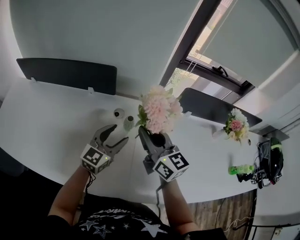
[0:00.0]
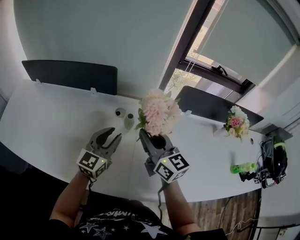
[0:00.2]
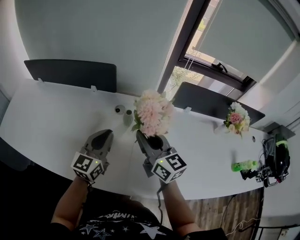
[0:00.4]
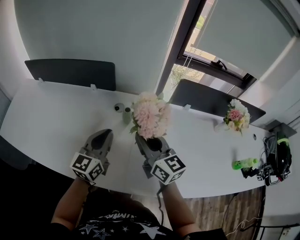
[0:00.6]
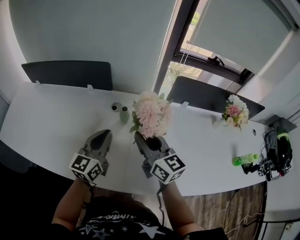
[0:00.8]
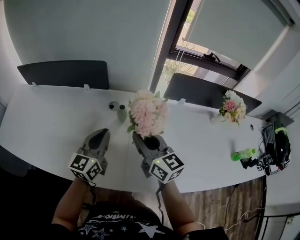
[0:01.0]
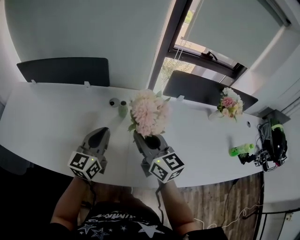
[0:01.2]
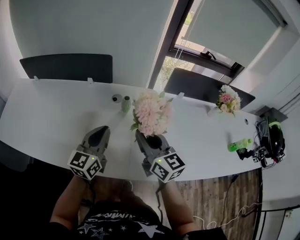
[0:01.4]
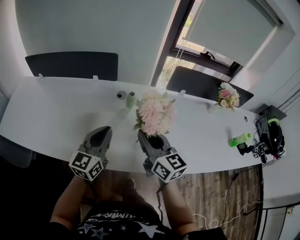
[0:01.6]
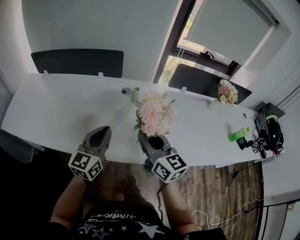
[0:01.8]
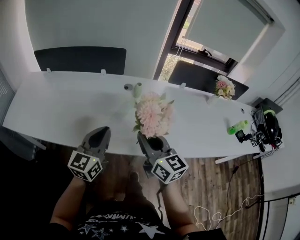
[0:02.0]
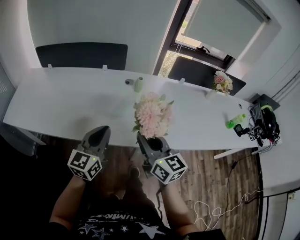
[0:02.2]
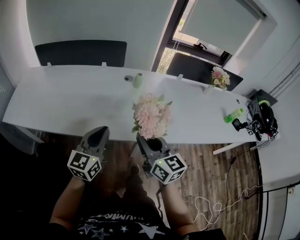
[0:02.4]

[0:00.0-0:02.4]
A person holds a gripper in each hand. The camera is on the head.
0:00.0 to 0:01.2: The right gripper travels backward by some 10 cm, while the left gripper goes approximately 10 cm backward and upward, and closes up.
0:01.2 to 0:02.4: The two grippers go roughly 25 cm backward and to the left.

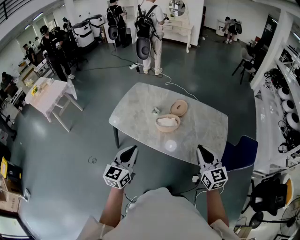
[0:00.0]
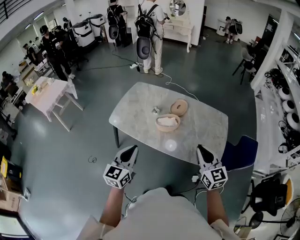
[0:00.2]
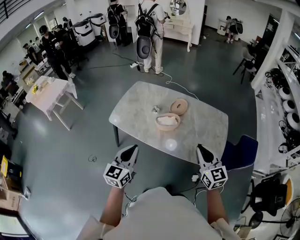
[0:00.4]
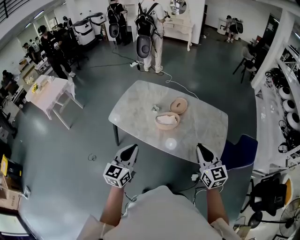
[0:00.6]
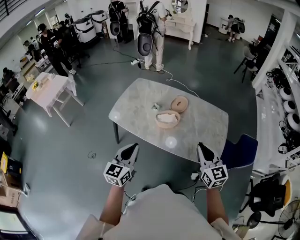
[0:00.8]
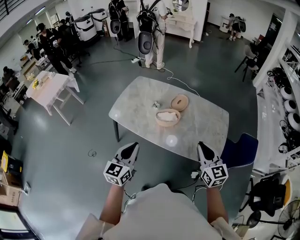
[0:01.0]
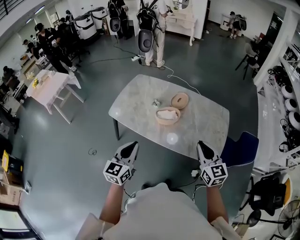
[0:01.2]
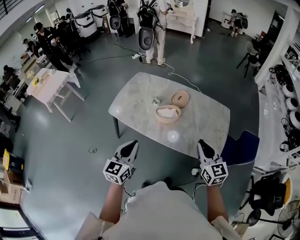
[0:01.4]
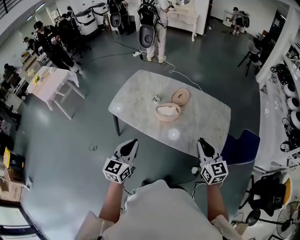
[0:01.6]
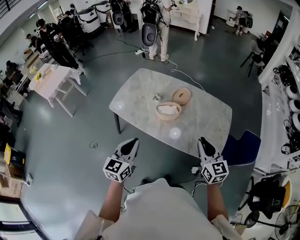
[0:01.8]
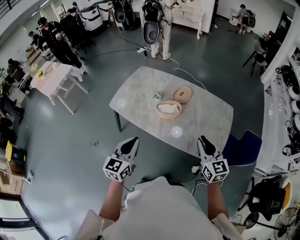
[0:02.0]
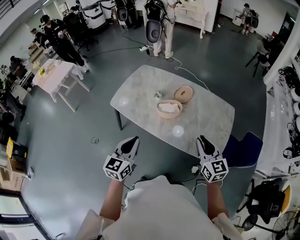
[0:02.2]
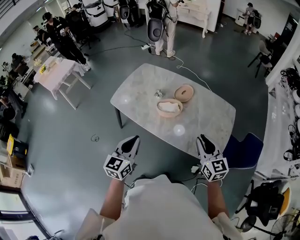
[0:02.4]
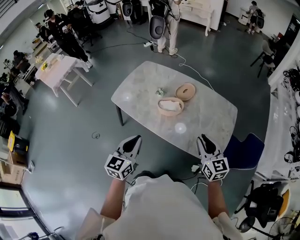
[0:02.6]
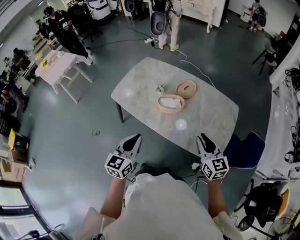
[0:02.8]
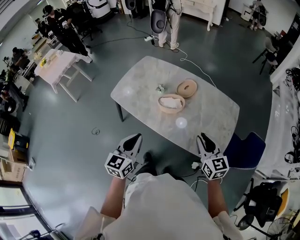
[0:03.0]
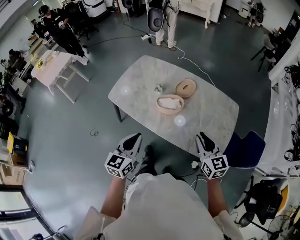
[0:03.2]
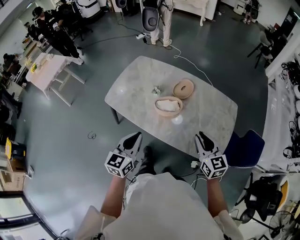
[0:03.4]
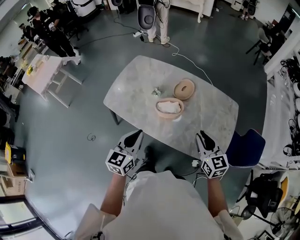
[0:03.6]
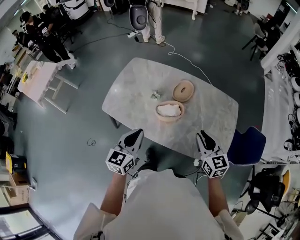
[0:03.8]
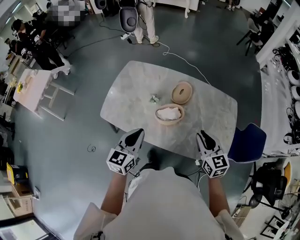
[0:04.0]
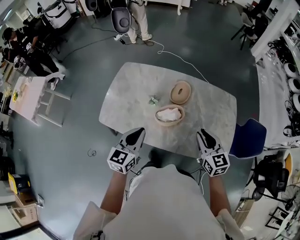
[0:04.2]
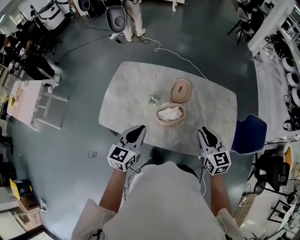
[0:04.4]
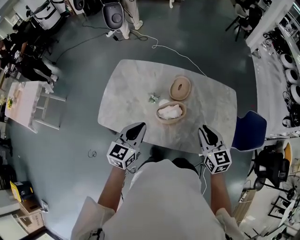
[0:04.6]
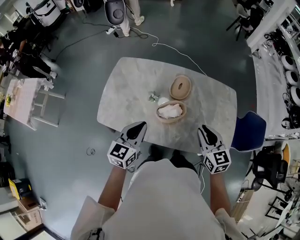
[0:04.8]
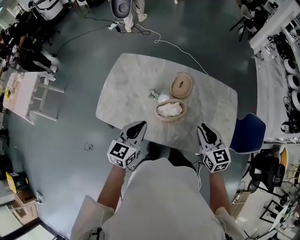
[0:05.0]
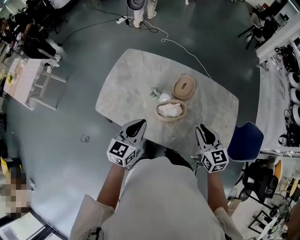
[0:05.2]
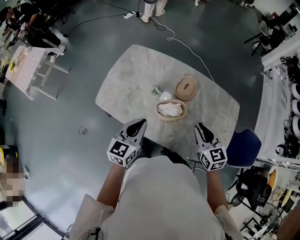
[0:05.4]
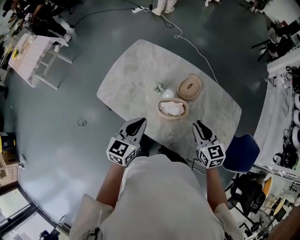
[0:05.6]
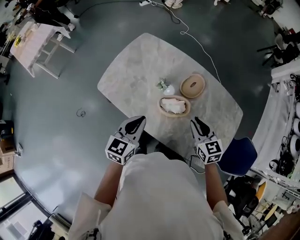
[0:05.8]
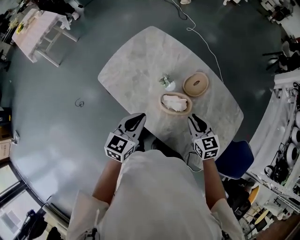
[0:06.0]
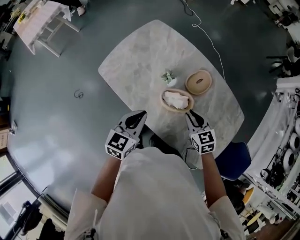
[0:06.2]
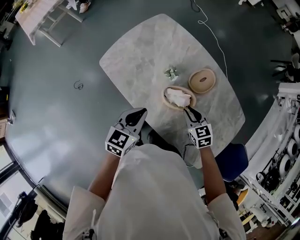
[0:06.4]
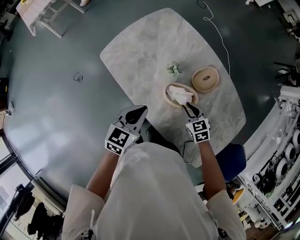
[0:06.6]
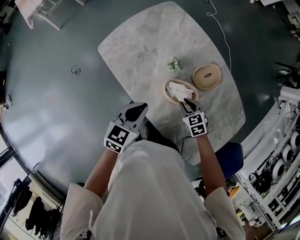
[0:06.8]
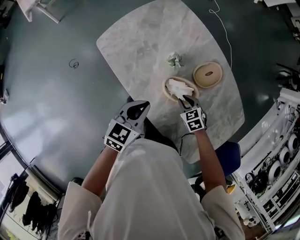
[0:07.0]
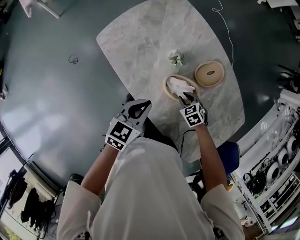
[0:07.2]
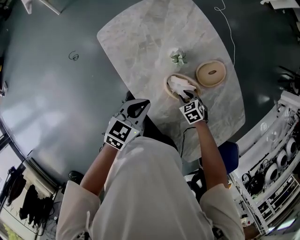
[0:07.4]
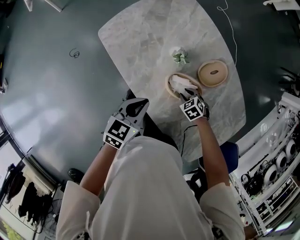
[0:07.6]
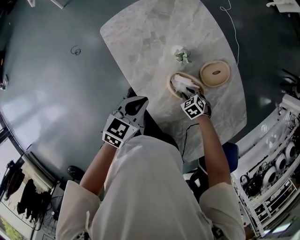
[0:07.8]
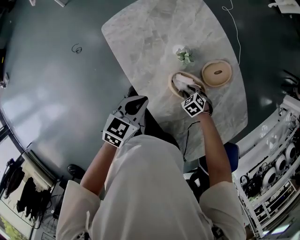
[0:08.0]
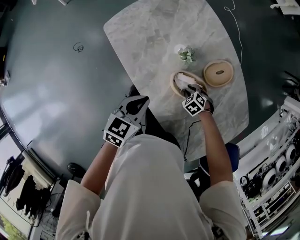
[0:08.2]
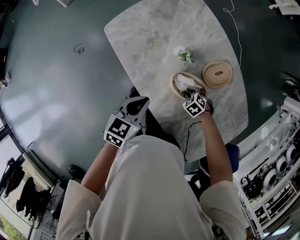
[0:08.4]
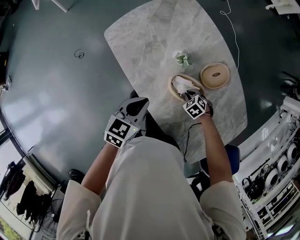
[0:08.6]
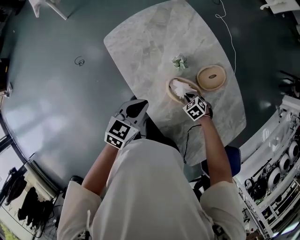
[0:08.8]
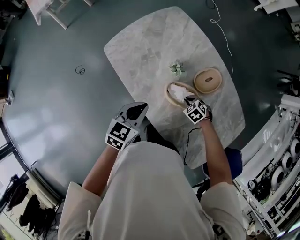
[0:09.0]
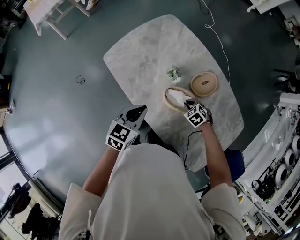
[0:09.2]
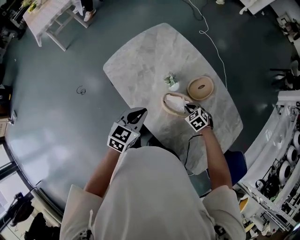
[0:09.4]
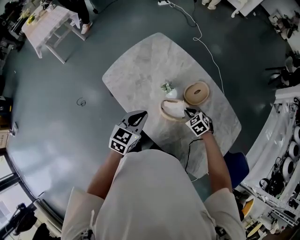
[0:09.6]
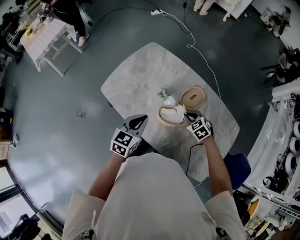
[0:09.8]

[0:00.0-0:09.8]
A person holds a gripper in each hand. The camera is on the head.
0:00.0 to 0:01.4: The grippers move only a little.
0:01.4 to 0:02.8: The left gripper is displaced to the right by approximately 5 cm; the right gripper moves about 10 cm.
0:02.8 to 0:04.2: The left gripper heads forward, covering roughly 25 cm. Meanwhile the right gripper is displaced forward and to the left by roughly 20 cm.
0:04.2 to 0:05.6: The right gripper is displaced forward by roughly 10 cm. Meanwhile the left gripper changes place by about 5 cm.
0:05.6 to 0:07.0: The left gripper goes approximately 10 cm downward. The right gripper travels downward by approximately 30 cm, and angles its fingers downward, by roughly 30 degrees.
0:07.0 to 0:08.4: The right gripper heads downward, covering some 10 cm, and rotates roughly 30 degrees.
0:08.4 to 0:09.8: The left gripper travels upward by approximately 10 cm. The right gripper is displaced upward by about 20 cm, and rotates some 30 degrees.

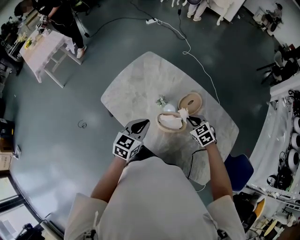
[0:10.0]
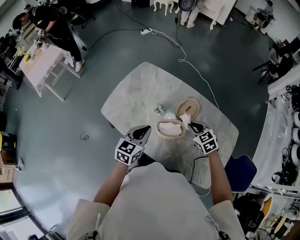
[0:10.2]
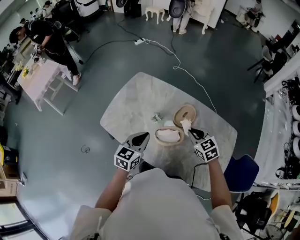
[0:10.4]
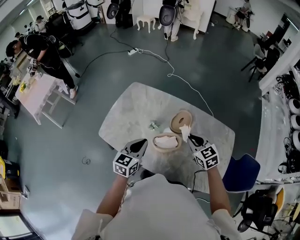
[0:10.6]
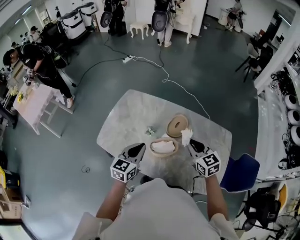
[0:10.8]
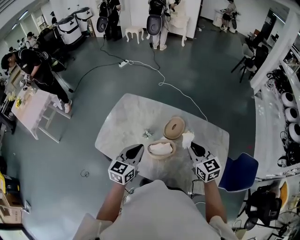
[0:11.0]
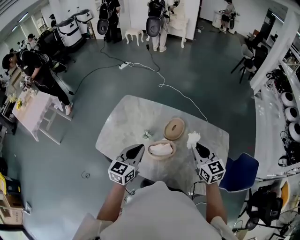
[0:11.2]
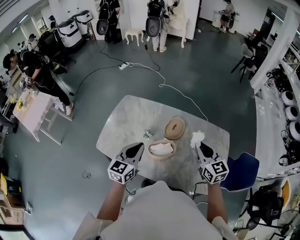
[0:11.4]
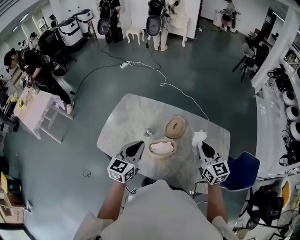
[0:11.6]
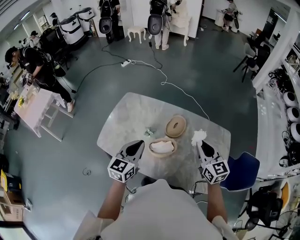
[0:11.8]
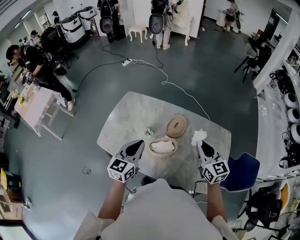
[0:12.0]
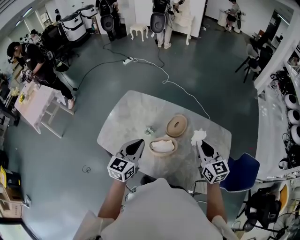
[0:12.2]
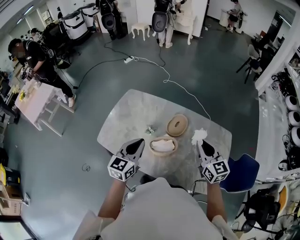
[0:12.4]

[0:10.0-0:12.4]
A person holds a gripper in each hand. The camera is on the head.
0:10.0 to 0:11.2: The right gripper shifts some 20 cm upward and to the right, and points its fingers roughly 30 degrees further upward, while the left gripper travels upward by roughly 10 cm.
0:11.2 to 0:12.4: There are only small adjustments of the grippers.

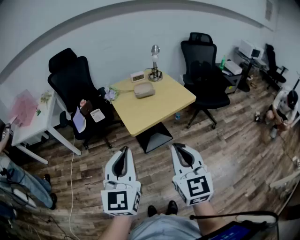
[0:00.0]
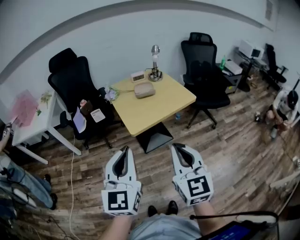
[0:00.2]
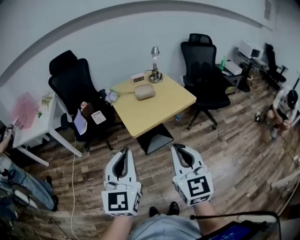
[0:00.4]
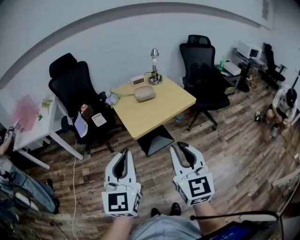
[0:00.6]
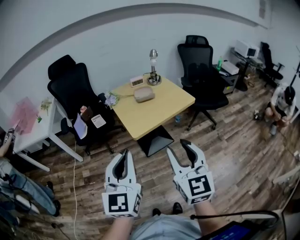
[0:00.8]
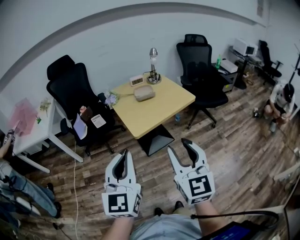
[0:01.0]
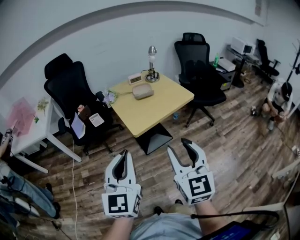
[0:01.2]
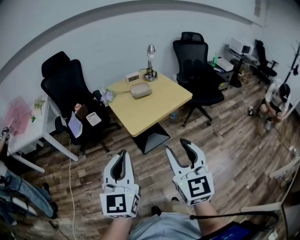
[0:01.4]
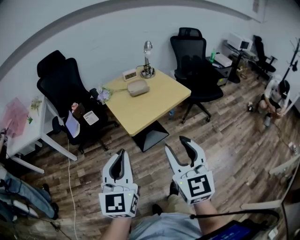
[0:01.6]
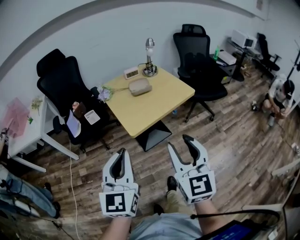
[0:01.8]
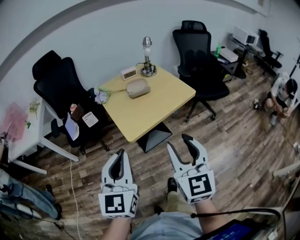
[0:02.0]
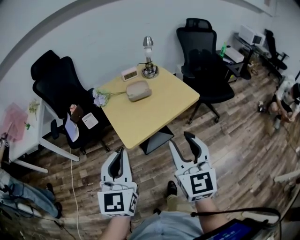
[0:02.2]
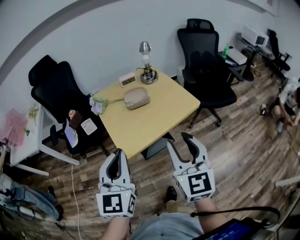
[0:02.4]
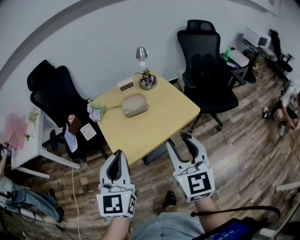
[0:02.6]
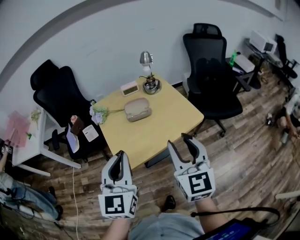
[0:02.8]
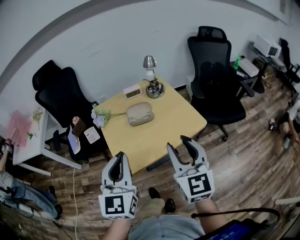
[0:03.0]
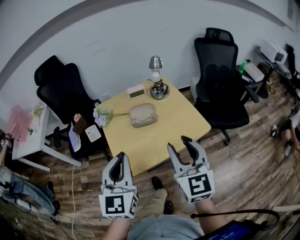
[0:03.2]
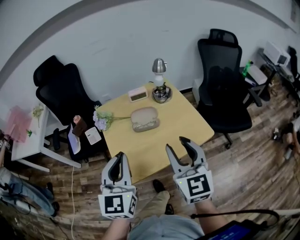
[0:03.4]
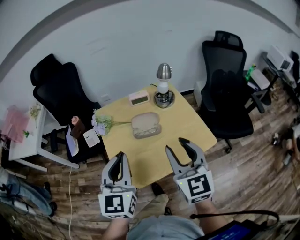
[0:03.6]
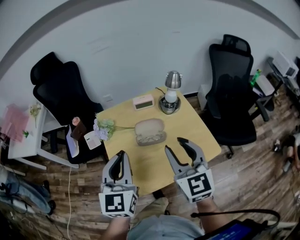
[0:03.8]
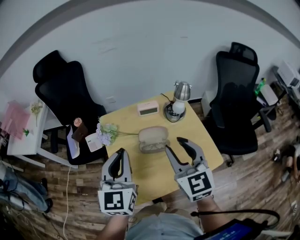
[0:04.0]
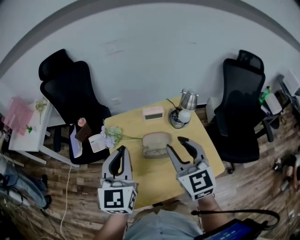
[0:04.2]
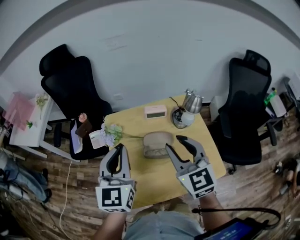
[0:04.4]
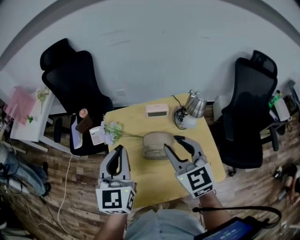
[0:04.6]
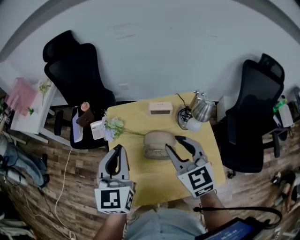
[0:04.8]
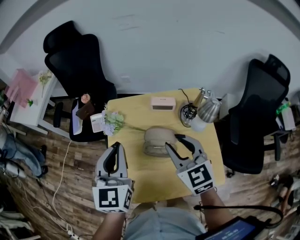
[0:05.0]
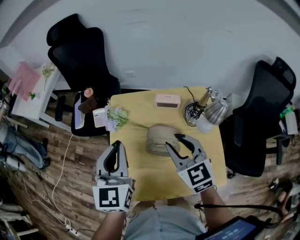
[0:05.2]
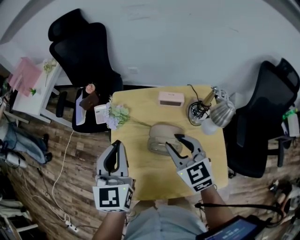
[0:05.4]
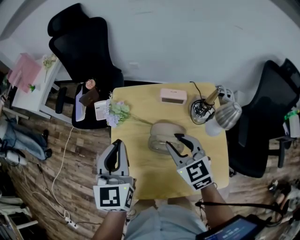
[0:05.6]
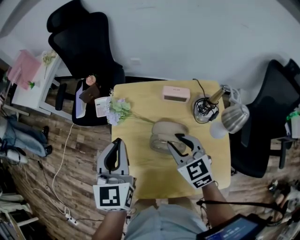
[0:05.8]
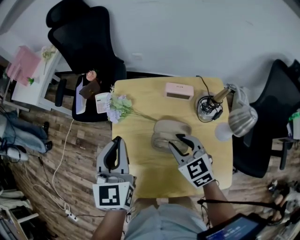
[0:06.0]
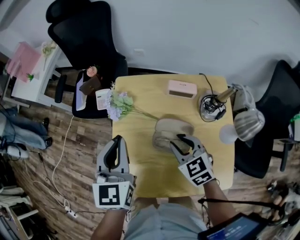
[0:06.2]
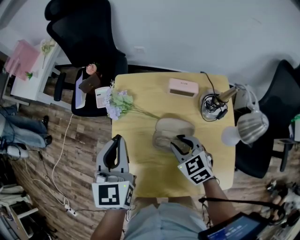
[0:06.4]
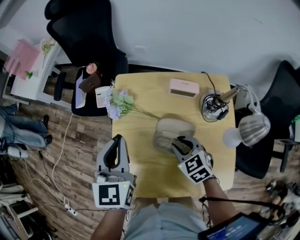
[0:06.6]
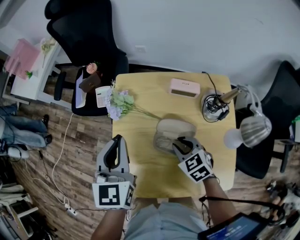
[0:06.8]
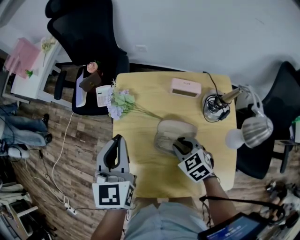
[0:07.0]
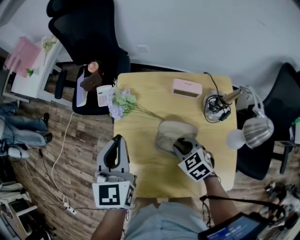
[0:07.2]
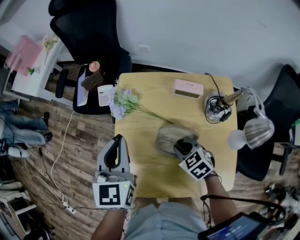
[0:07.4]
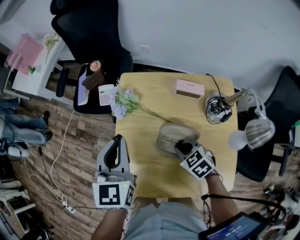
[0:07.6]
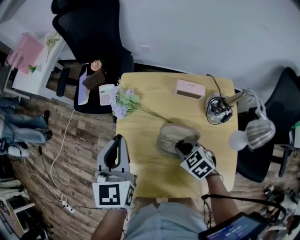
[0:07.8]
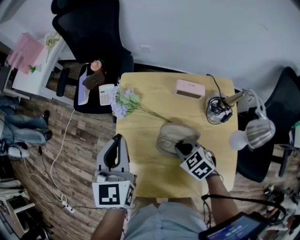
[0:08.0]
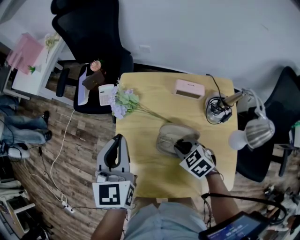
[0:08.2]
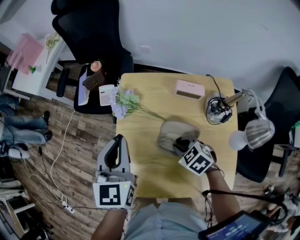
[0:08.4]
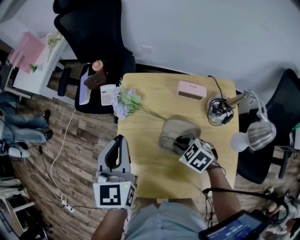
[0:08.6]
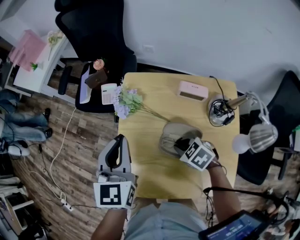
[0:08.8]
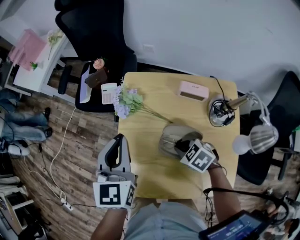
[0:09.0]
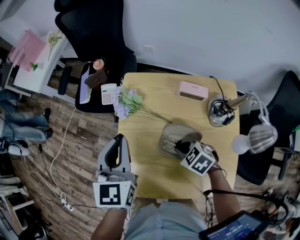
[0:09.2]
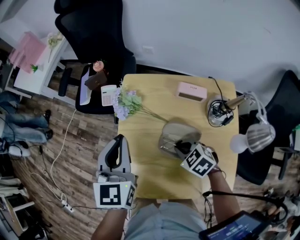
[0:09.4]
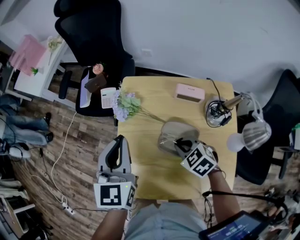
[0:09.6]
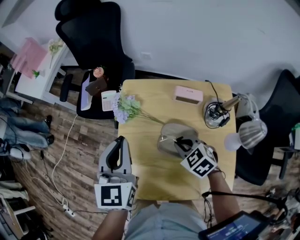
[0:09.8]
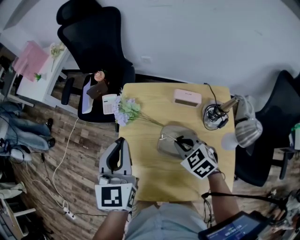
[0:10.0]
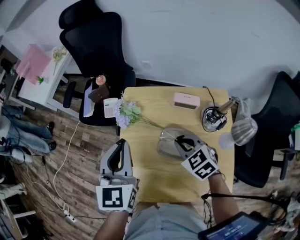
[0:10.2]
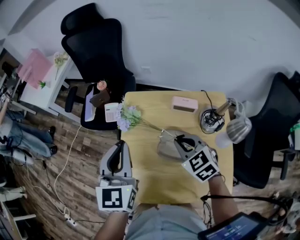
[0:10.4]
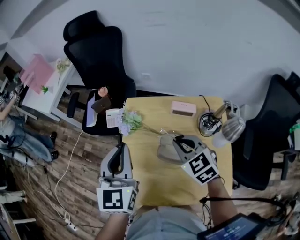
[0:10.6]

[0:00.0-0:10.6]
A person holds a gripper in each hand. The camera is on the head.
0:00.0 to 0:01.6: The right gripper opens.
0:01.6 to 0:03.0: Both grippers travel together forward, some 30 cm.
0:03.0 to 0:04.6: Both grippers move forward, about 25 cm. The right gripper changes its angle by roughly 30 degrees.
0:04.6 to 0:06.0: The left gripper travels downward by some 5 cm. Meanwhile the right gripper goes approximately 15 cm downward, and changes its angle by about 30 degrees.
0:06.0 to 0:07.6: The right gripper travels downward by approximately 10 cm, swivels roughly 30 degrees, and closes its fingers.
0:07.6 to 0:09.0: The grippers make only small movements.
0:09.0 to 0:10.6: The left gripper goes about 5 cm upward. The right gripper shifts about 15 cm upward, and swivels approximately 40 degrees.
